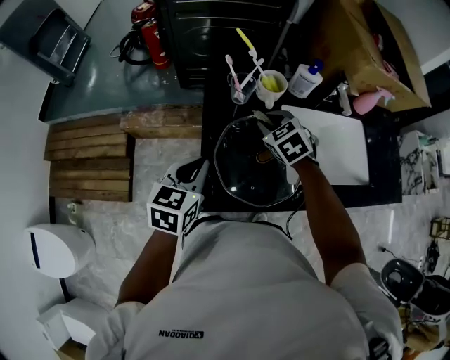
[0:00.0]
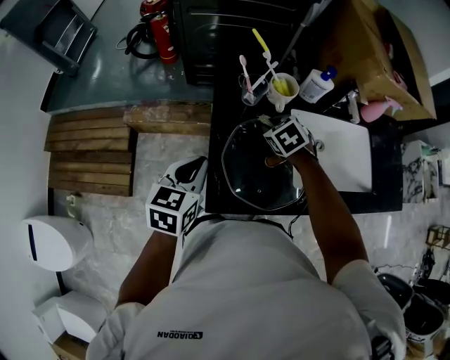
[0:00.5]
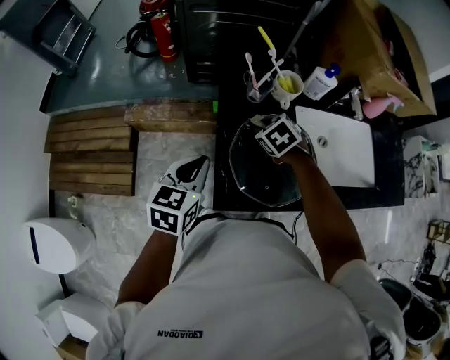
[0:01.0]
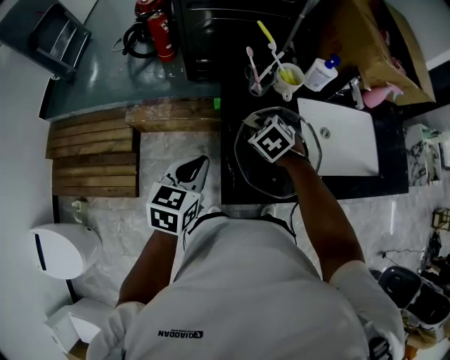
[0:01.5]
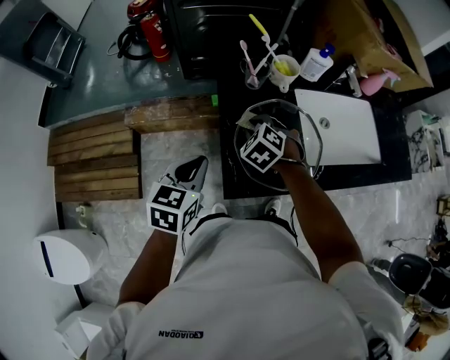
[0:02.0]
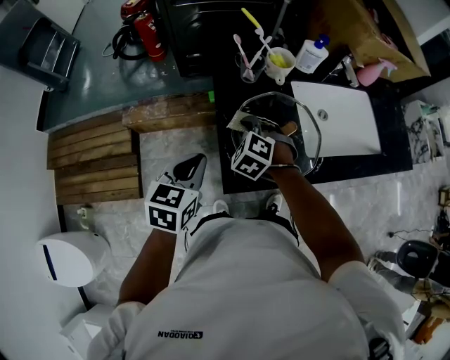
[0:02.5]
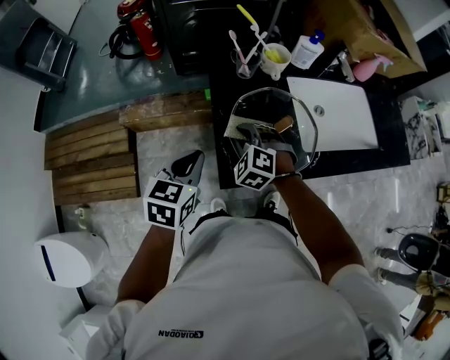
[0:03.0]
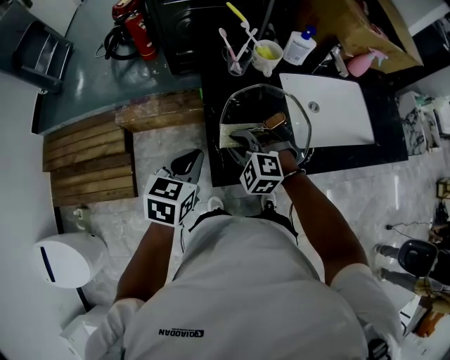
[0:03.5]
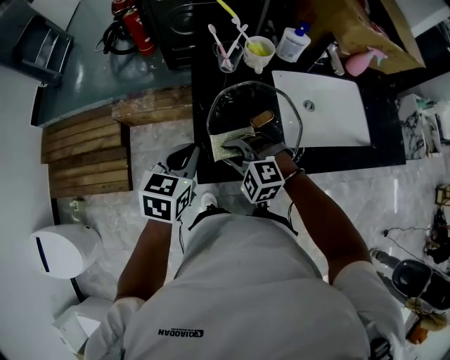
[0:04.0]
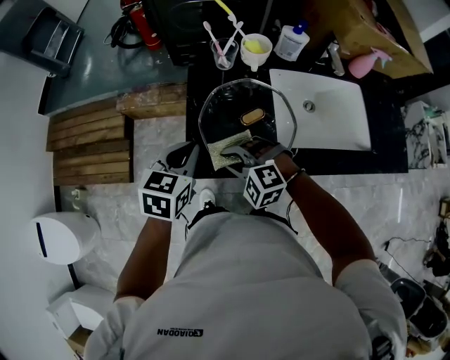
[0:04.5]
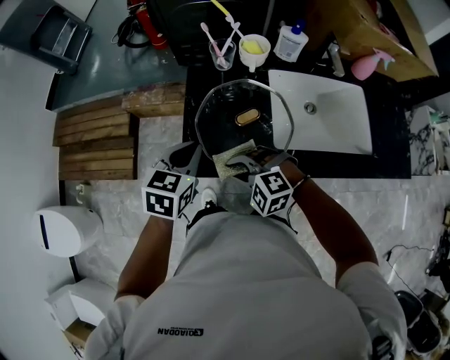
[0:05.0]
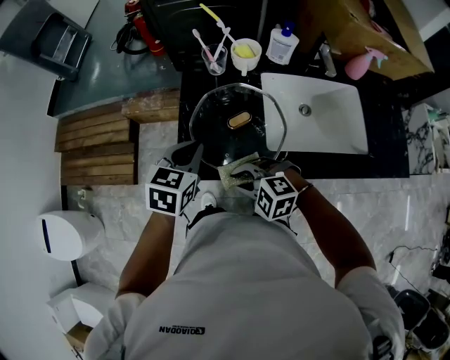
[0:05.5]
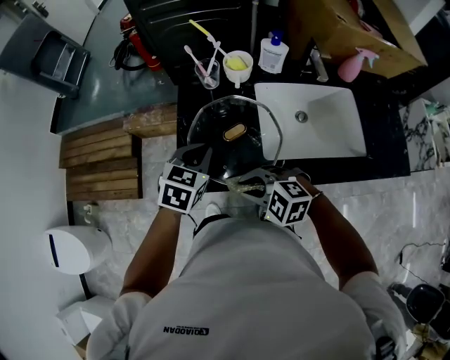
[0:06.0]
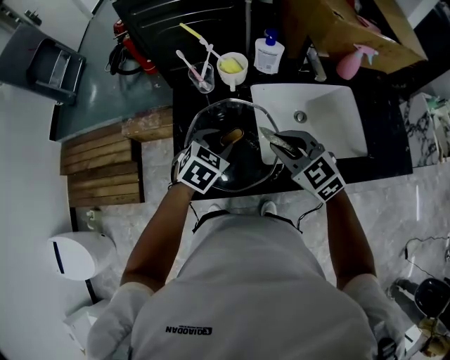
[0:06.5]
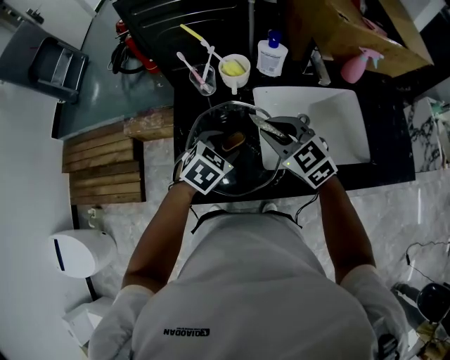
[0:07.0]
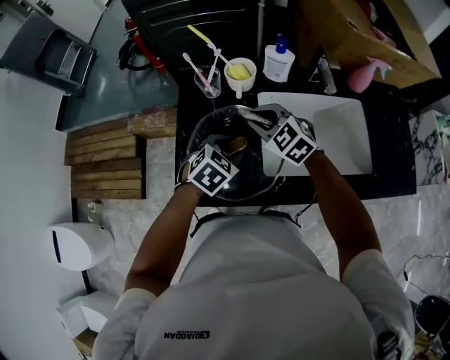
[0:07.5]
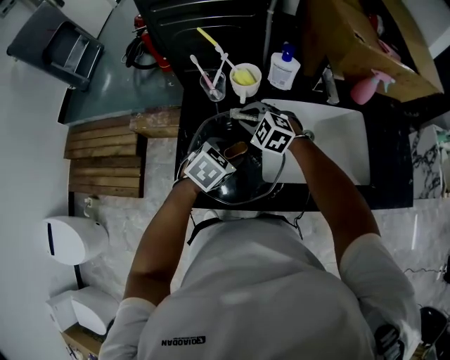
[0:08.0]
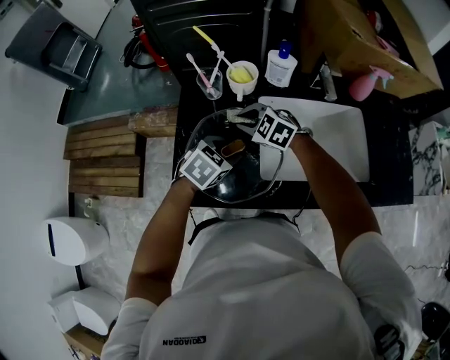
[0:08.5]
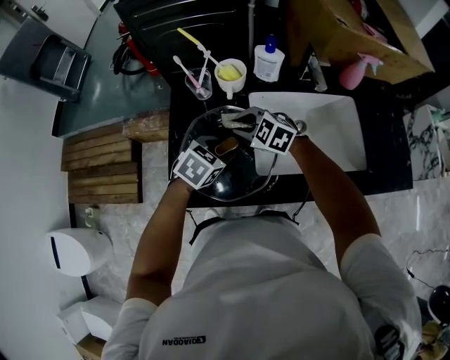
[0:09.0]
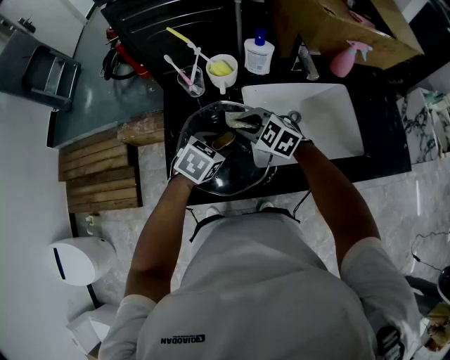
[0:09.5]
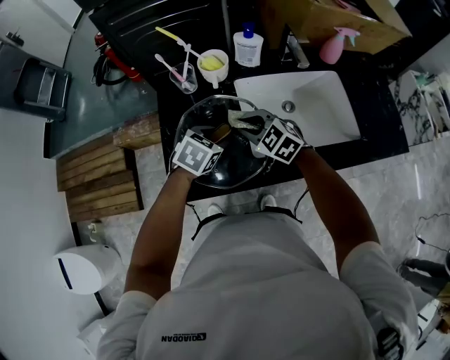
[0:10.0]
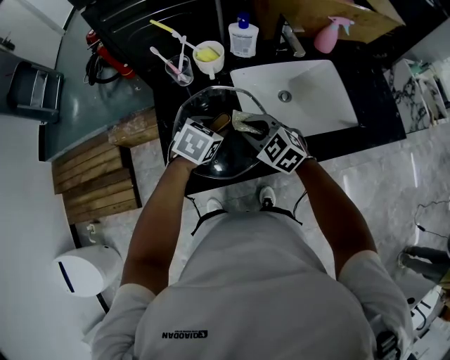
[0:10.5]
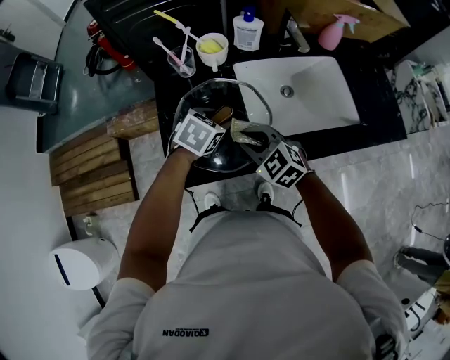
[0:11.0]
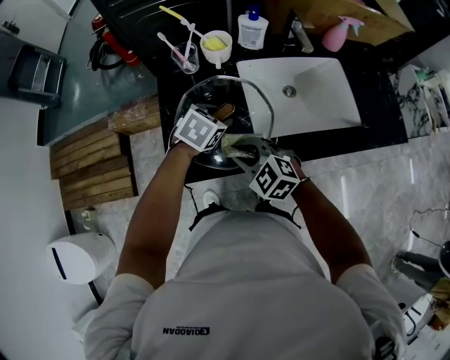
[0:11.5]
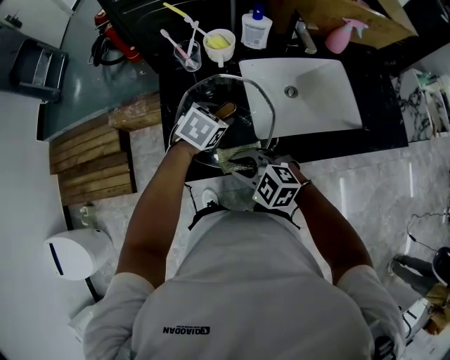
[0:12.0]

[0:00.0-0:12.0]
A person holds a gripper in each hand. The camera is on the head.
0:00.0 to 0:02.0: The left gripper shifts about 5 cm to the left; the right gripper goes some 15 cm to the left, backward and downward.
0:02.0 to 0:04.0: The right gripper shifts approximately 15 cm backward, and rotates some 40 degrees, while the left gripper travels to the right by about 5 cm.
0:04.0 to 0:06.0: The right gripper moves backward and to the right, about 15 cm, and turns by approximately 20 degrees. The left gripper moves to the right, roughly 15 cm.
0:06.0 to 0:08.0: The left gripper shifts by some 15 cm, rotates about 20 degrees, and opens up, while the right gripper goes upward and returns, approximately 5 cm each way.
0:08.0 to 0:10.0: The right gripper goes about 10 cm backward and to the right.
0:10.0 to 0:12.0: The right gripper moves backward, roughly 20 cm.

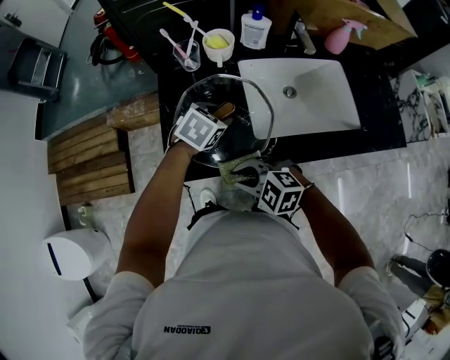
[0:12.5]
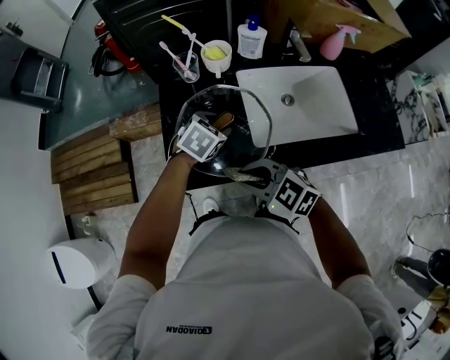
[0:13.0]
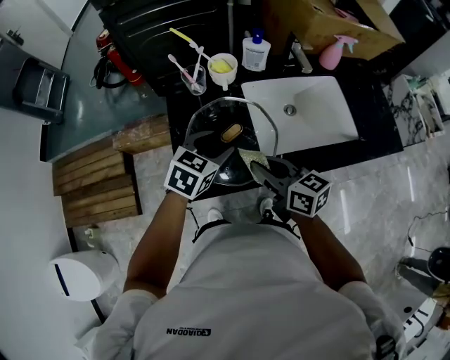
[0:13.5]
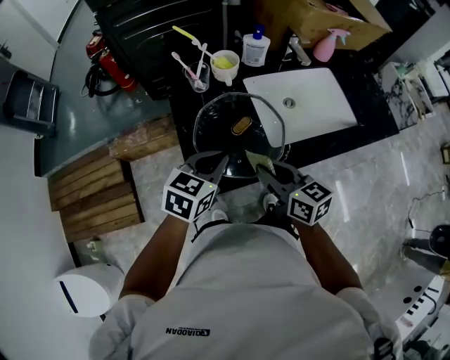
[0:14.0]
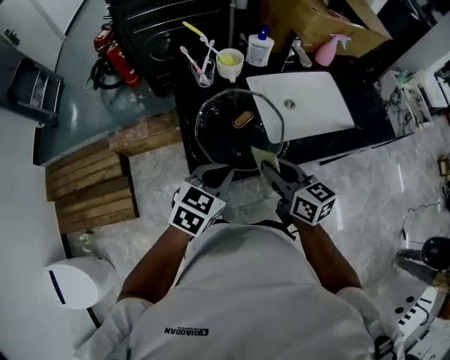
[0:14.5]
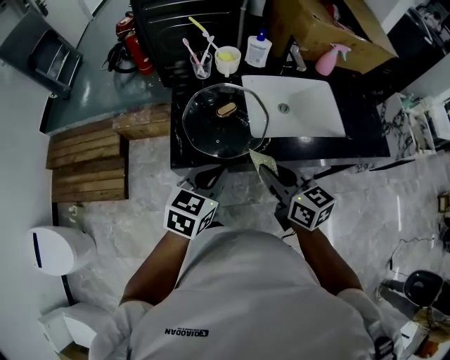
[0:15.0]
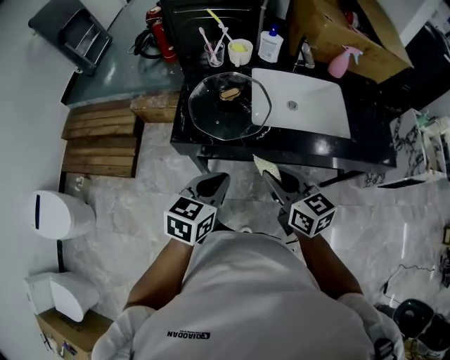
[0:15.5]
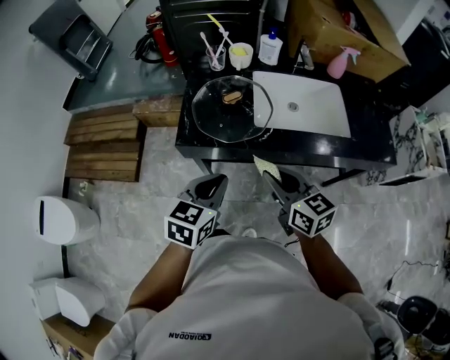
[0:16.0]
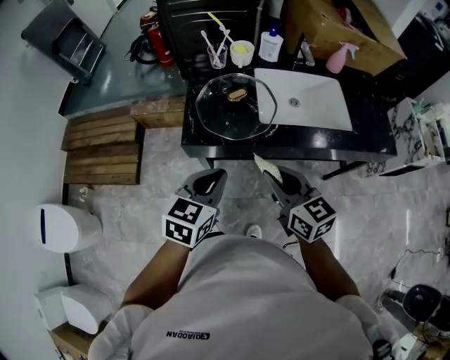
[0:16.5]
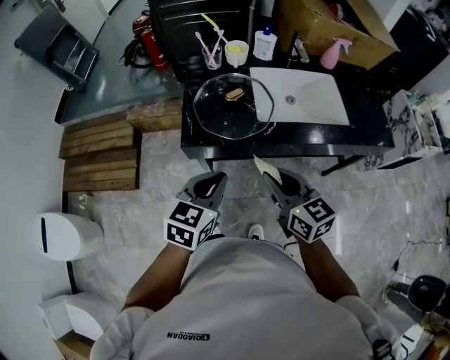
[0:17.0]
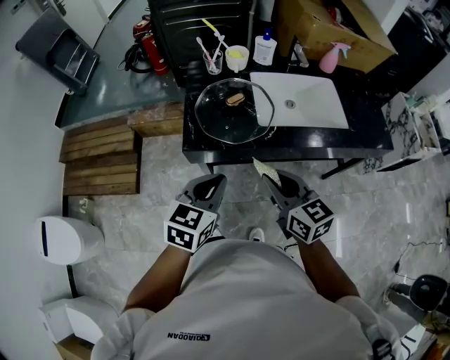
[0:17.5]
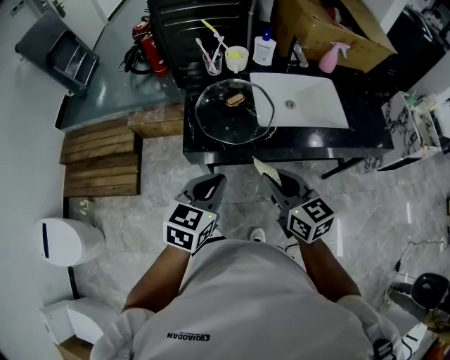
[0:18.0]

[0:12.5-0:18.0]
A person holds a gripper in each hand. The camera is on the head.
0:12.5 to 0:14.5: The left gripper shifts by roughly 20 cm, and closes its fingers; the right gripper heads upward, covering about 10 cm, and swivels about 80 degrees.
0:14.5 to 0:16.0: Both grippers travel together backward and to the right, roughly 15 cm. The left gripper changes its angle by roughly 30 degrees.
0:16.0 to 0:18.0: The left gripper shifts approximately 5 cm to the left, while the right gripper shifts by about 5 cm.

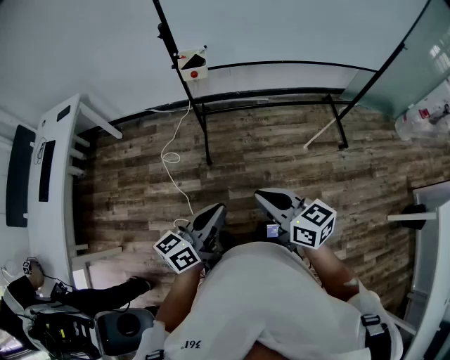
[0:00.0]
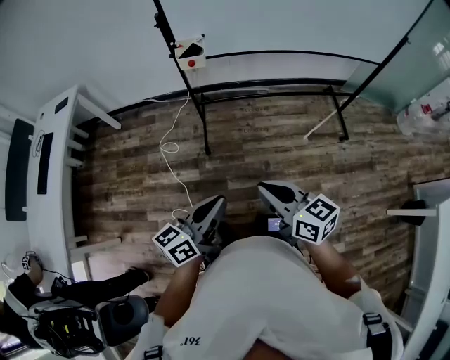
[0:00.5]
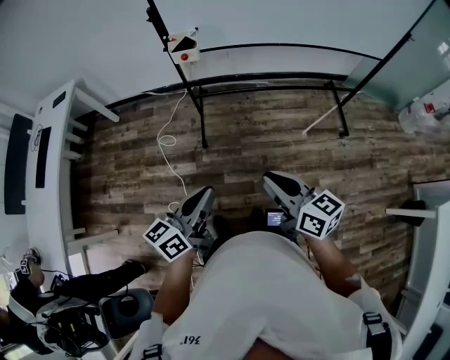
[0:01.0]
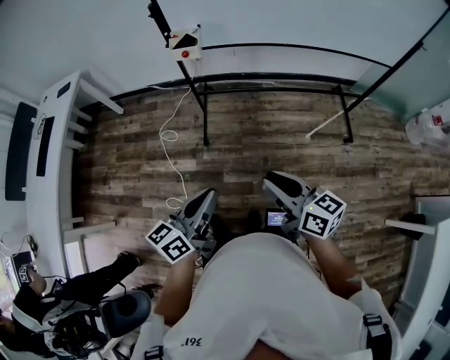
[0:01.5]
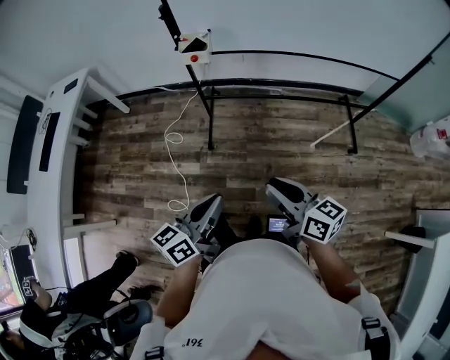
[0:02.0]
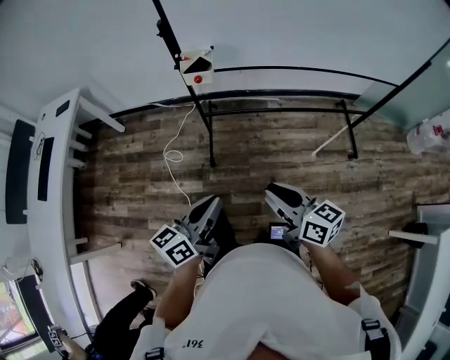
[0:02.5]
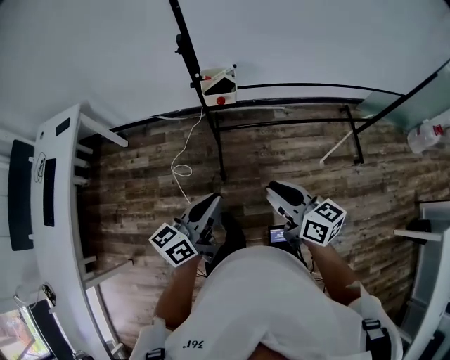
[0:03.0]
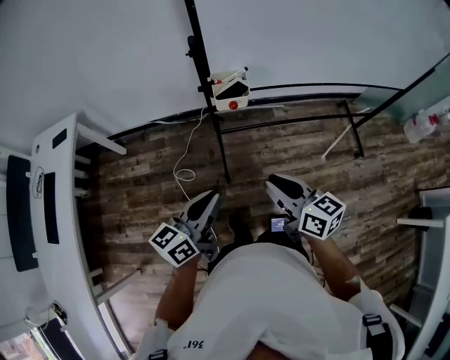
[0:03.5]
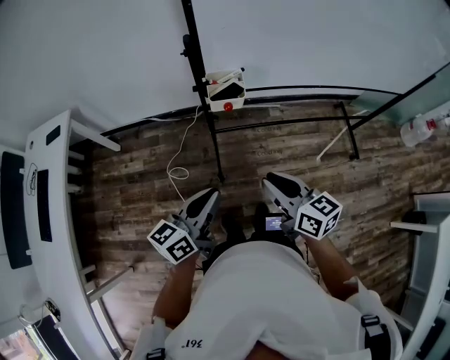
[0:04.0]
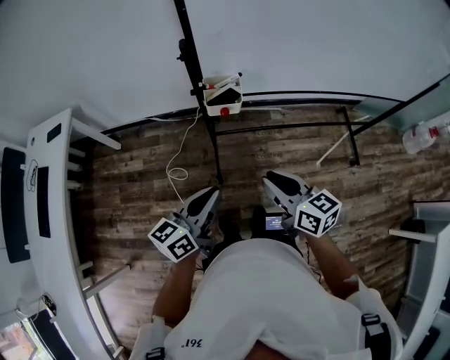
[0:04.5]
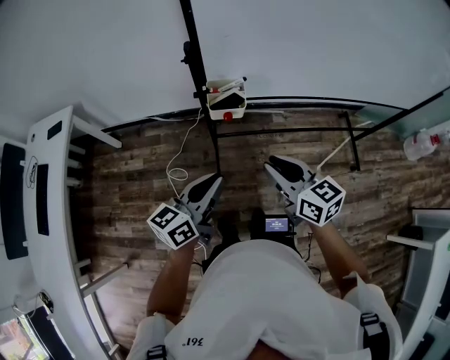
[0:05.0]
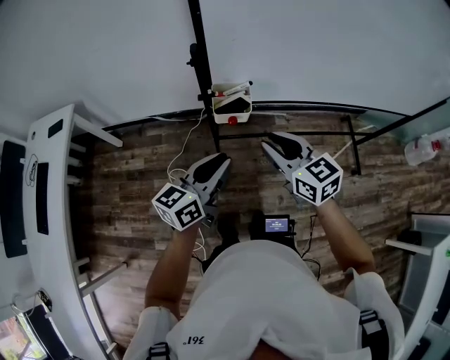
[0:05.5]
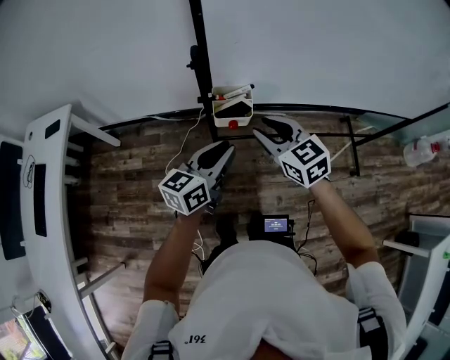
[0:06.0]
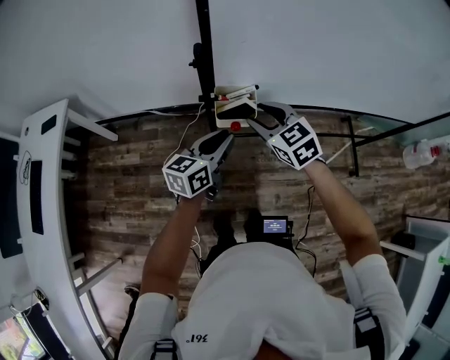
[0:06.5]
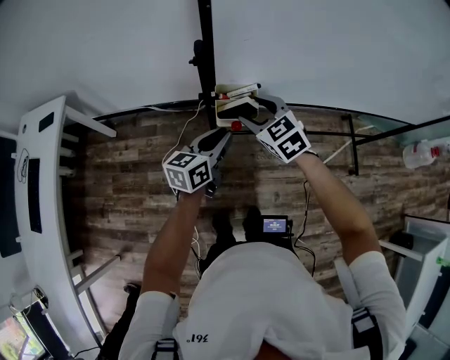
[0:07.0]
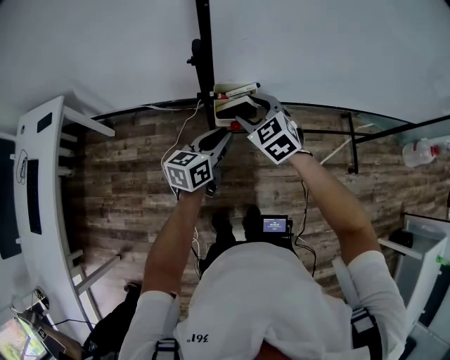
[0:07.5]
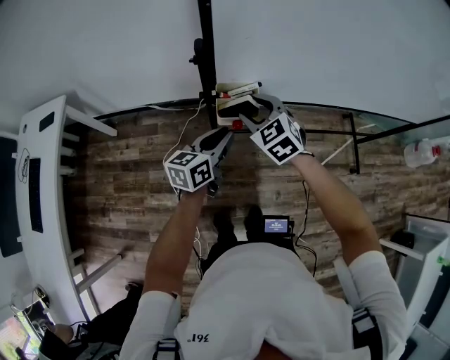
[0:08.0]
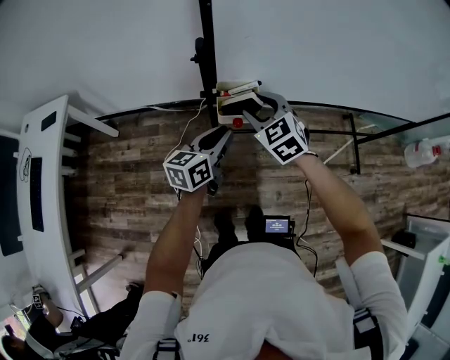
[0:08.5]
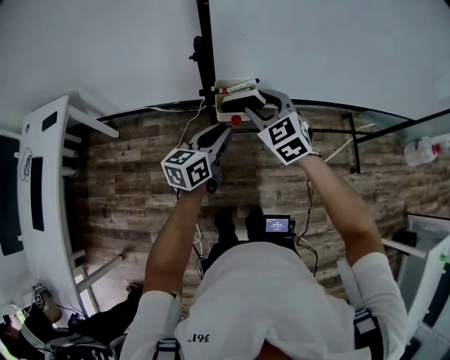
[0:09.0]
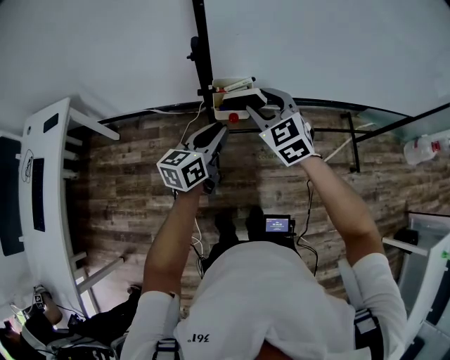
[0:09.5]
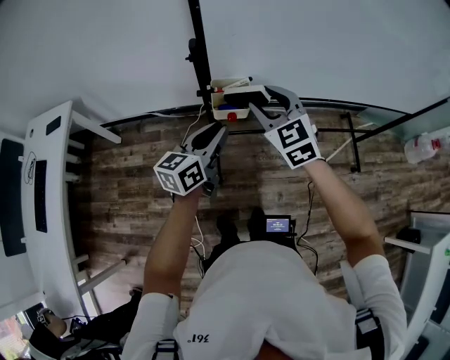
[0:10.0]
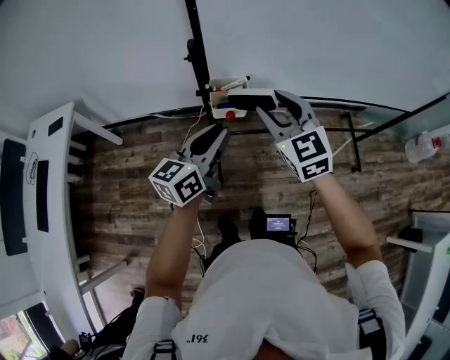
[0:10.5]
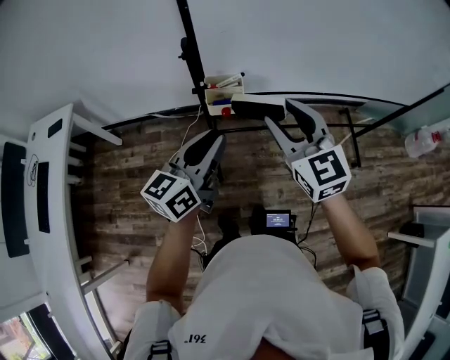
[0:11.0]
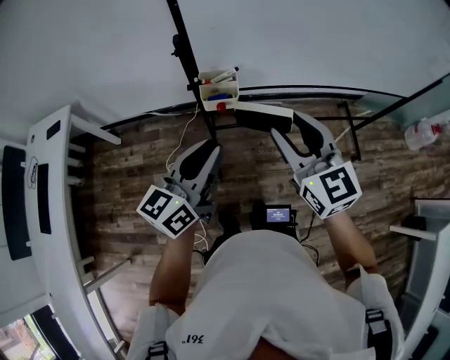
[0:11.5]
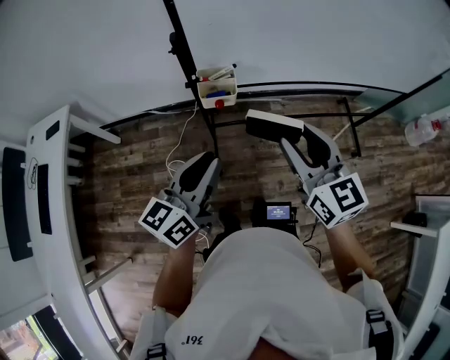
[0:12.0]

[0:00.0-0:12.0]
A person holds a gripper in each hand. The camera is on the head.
0:00.0 to 0:02.0: The left gripper moves to the right, about 5 cm, while the right gripper goes about 10 cm to the right.
0:02.0 to 0:04.0: The two grippers go approximately 30 cm forward and to the left.
0:04.0 to 0:06.0: Both grippers travel together forward, some 20 cm. The right gripper changes its angle by about 30 degrees.
0:06.0 to 0:08.0: The right gripper travels forward and downward by roughly 10 cm, and changes its angle by approximately 20 degrees, while the left gripper shifts approximately 10 cm downward and forward.
0:08.0 to 0:10.0: The two grippers go approximately 10 cm upward.
0:10.0 to 0:12.0: The left gripper travels backward and upward by some 15 cm. The right gripper shifts approximately 20 cm backward and to the right, and changes its angle by roughly 30 degrees.
